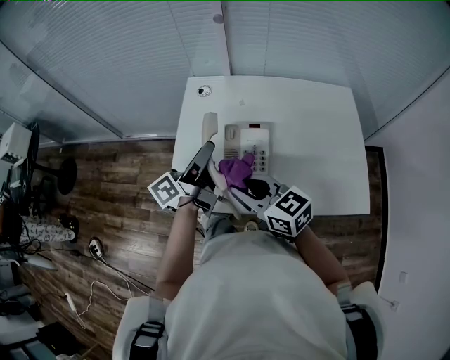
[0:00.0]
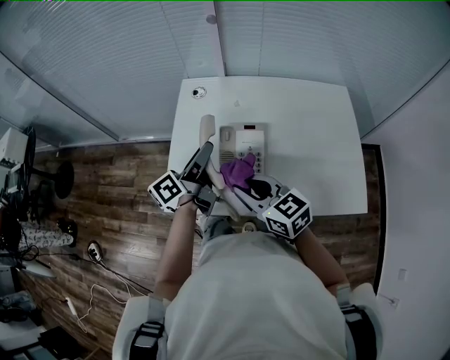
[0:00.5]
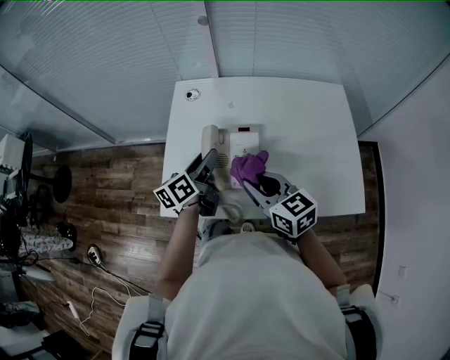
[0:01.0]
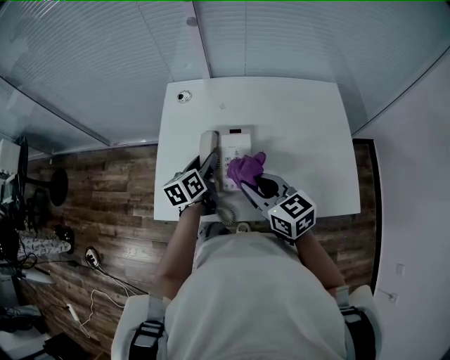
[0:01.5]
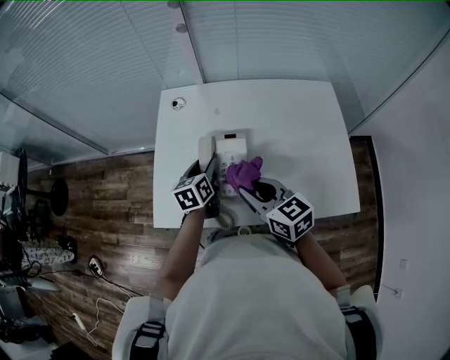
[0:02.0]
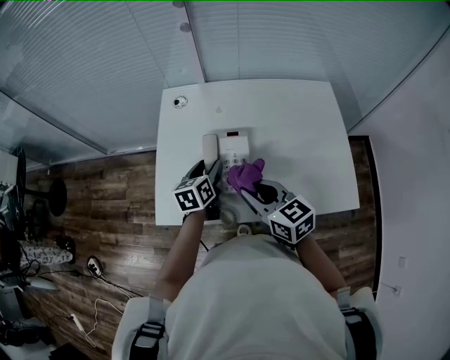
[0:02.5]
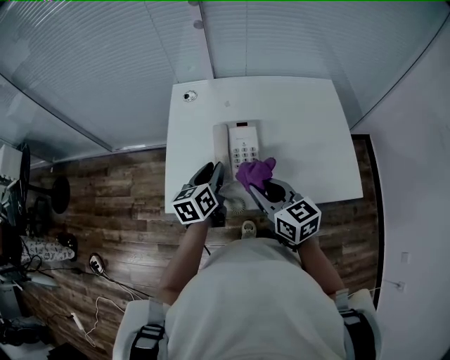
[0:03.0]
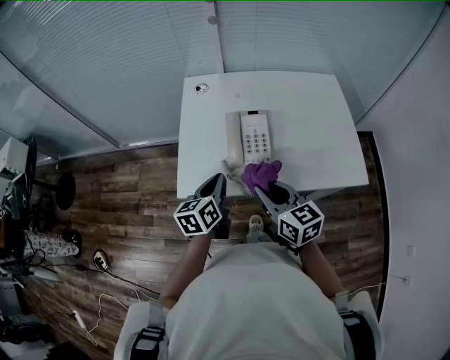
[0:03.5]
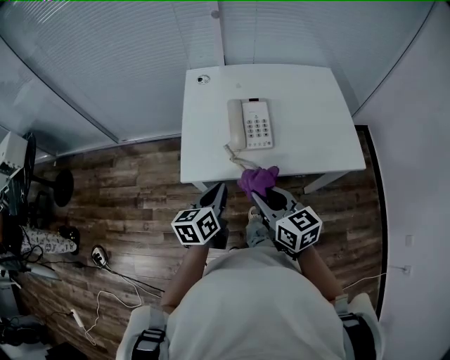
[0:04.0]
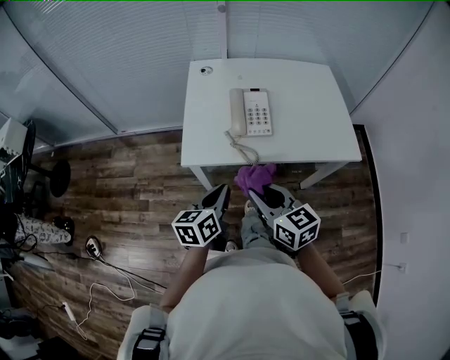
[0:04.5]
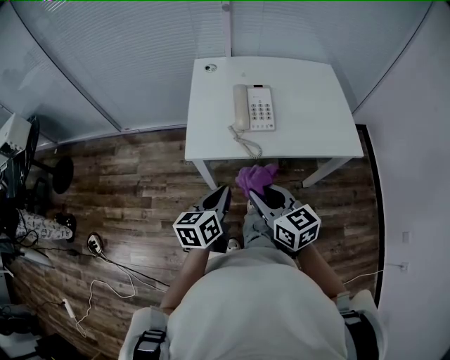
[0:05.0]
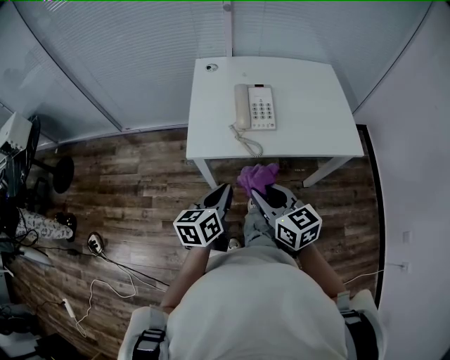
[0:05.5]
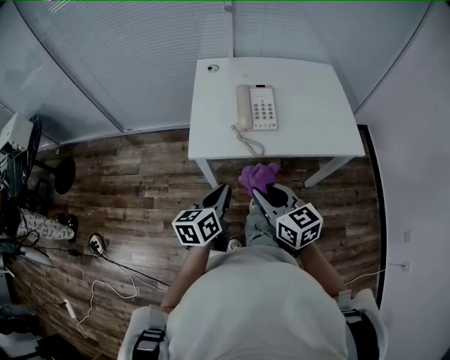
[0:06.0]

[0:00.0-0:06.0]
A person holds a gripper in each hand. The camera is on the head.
0:00.0 to 0:02.0: The left gripper goes roughly 15 cm downward, and points its fingers roughly 40 degrees further downward; the right gripper goes approximately 10 cm to the right.
0:02.0 to 0:04.0: Both grippers move backward and to the left, roughly 25 cm. The left gripper closes its fingers.
0:04.0 to 0:06.0: The grippers both shift backward by approximately 10 cm.

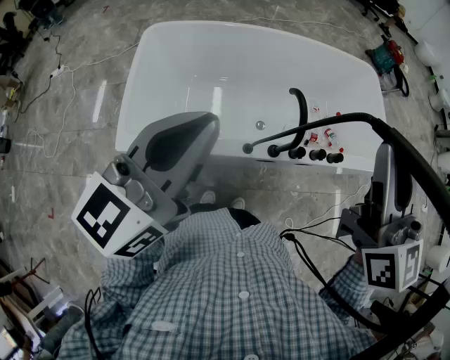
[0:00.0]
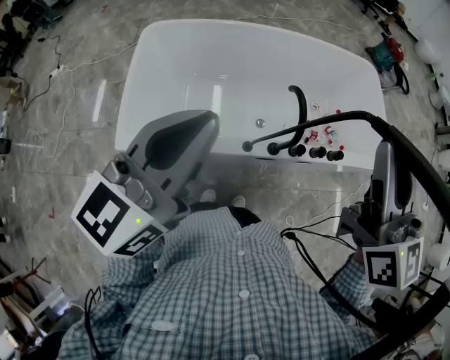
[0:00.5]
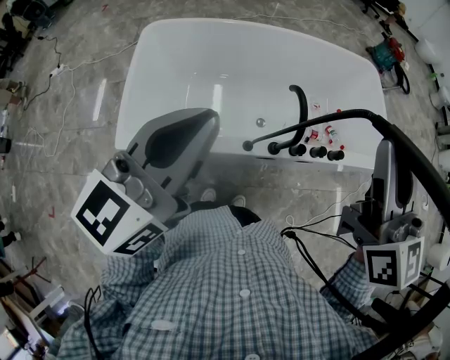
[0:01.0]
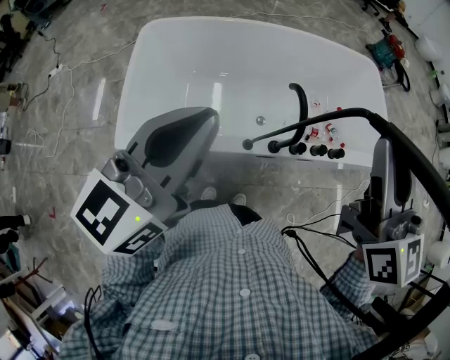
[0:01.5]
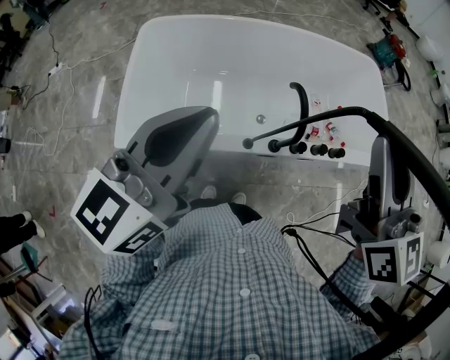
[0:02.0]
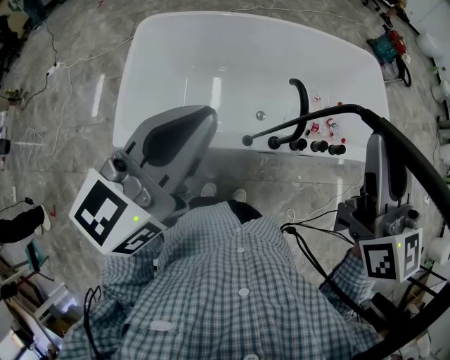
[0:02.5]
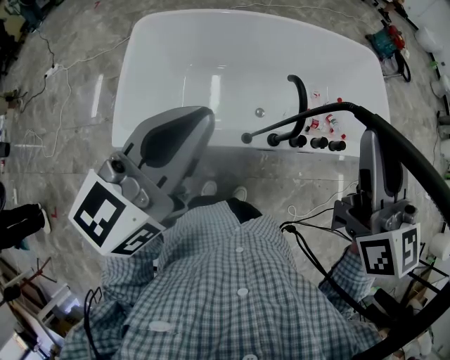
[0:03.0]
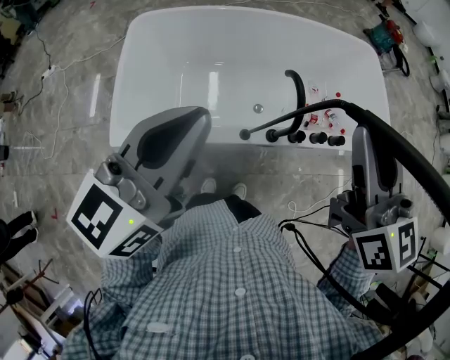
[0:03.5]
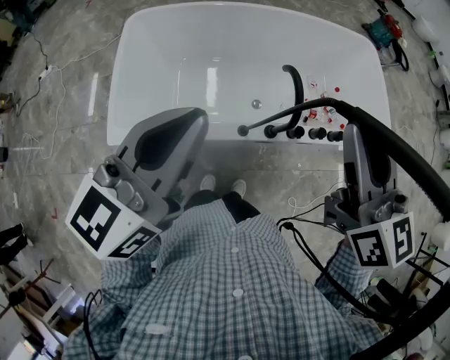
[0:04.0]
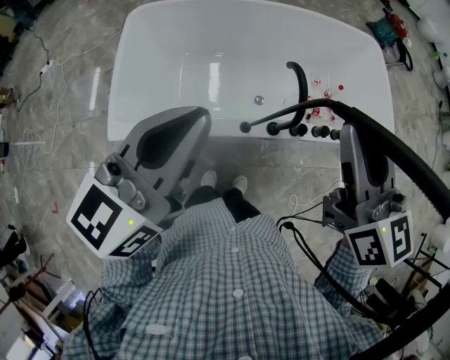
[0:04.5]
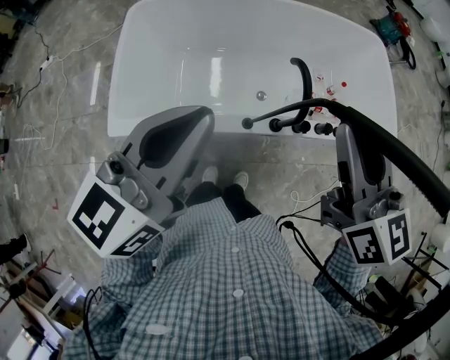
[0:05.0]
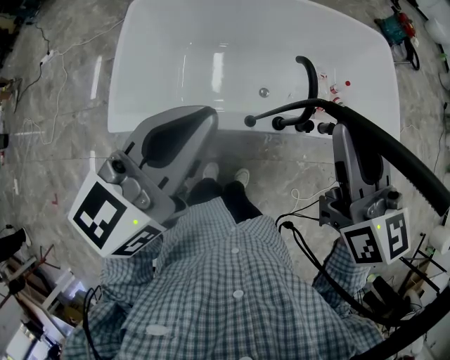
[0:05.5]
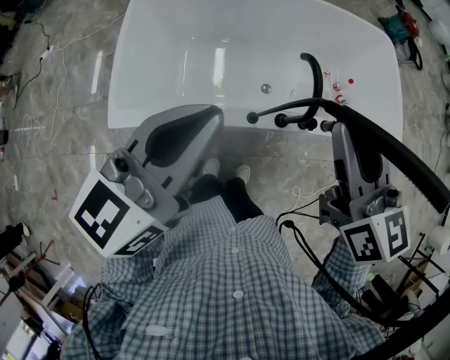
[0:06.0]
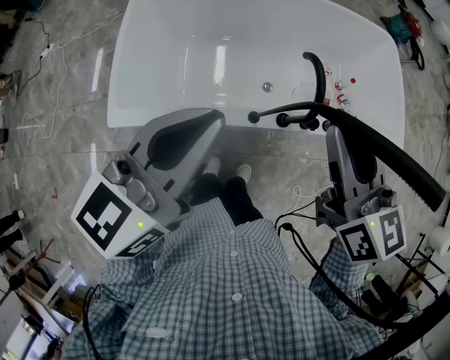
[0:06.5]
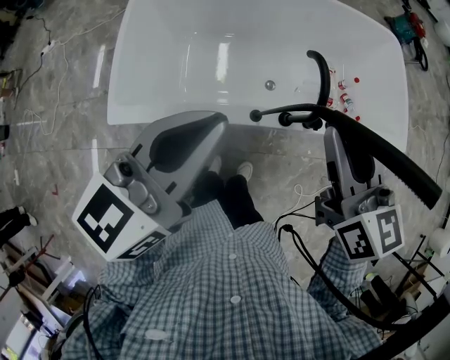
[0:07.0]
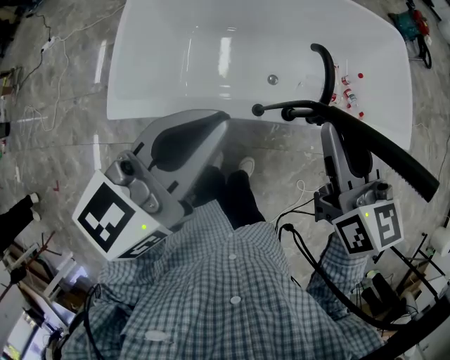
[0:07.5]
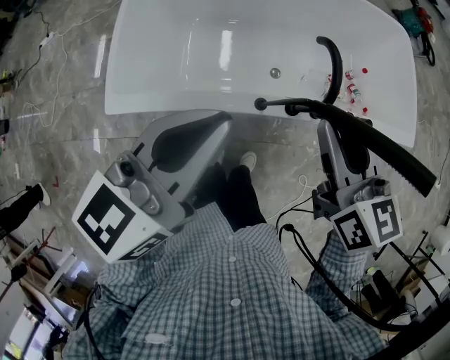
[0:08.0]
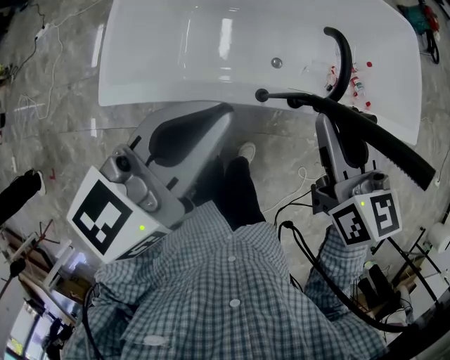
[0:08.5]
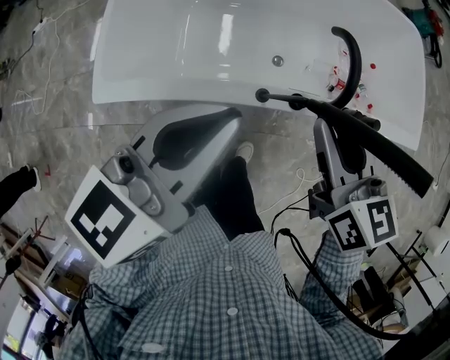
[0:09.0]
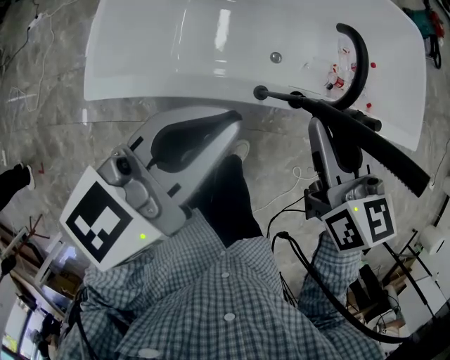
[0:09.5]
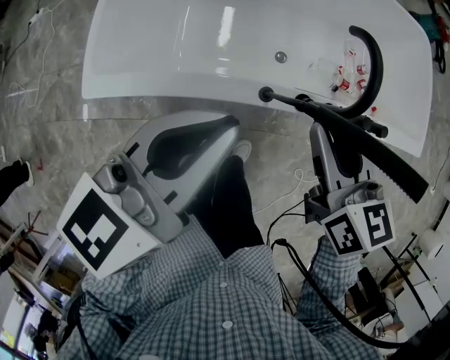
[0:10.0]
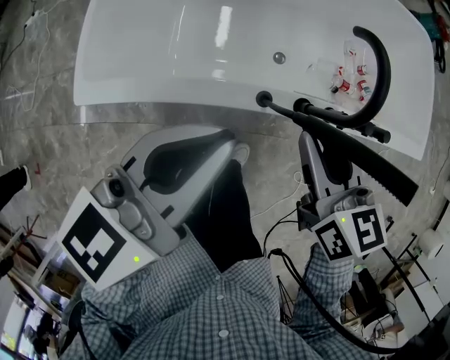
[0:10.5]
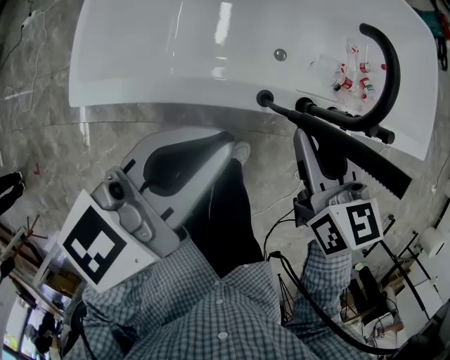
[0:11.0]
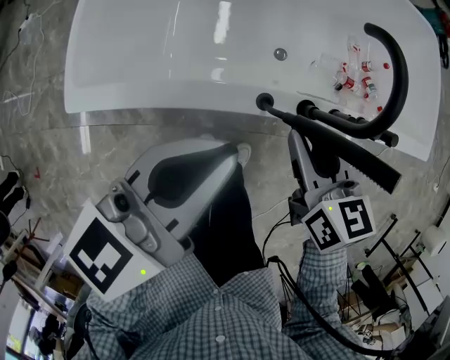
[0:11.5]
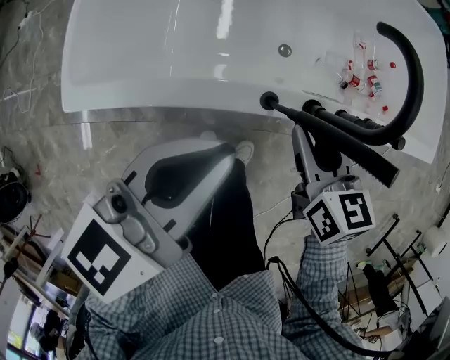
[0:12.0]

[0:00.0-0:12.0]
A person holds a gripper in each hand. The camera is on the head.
0:00.0 to 0:02.0: There are only small adjustments of the grippers.
0:02.0 to 0:04.0: The right gripper goes about 5 cm downward.
0:04.0 to 0:06.0: The right gripper moves downward, approximately 5 cm.
0:06.0 to 0:08.0: The left gripper heads downward, covering approximately 5 cm. The right gripper travels downward by approximately 10 cm.
0:08.0 to 0:10.0: The two grippers go approximately 10 cm downward.
0:10.0 to 0:12.0: The right gripper goes approximately 15 cm downward; the left gripper travels downward by about 10 cm.

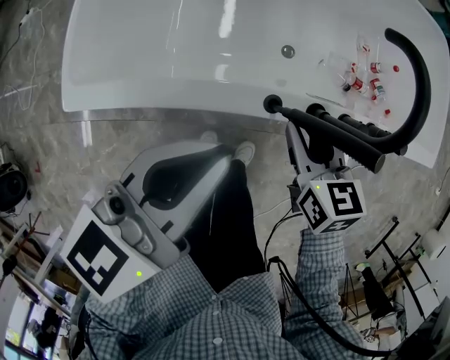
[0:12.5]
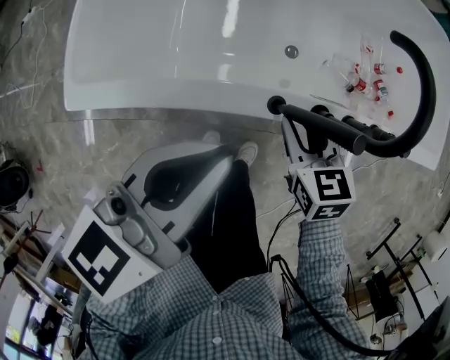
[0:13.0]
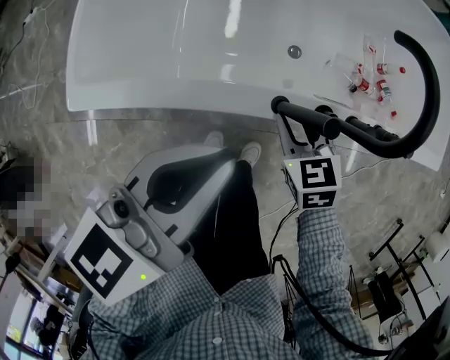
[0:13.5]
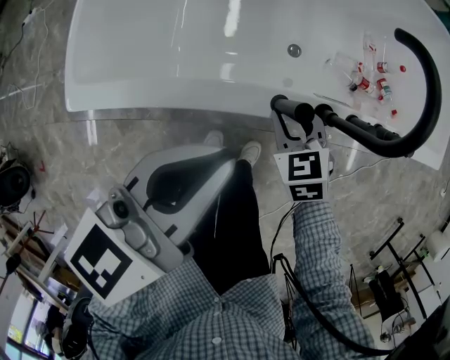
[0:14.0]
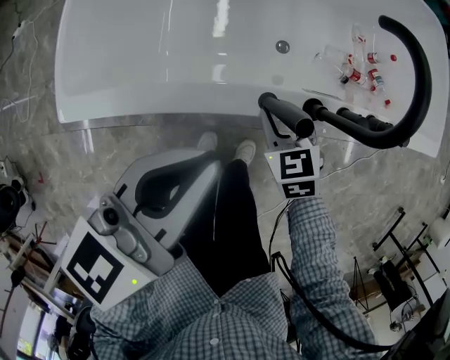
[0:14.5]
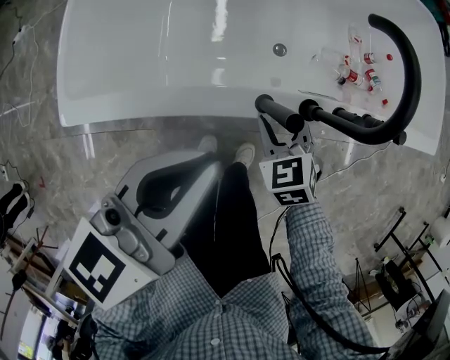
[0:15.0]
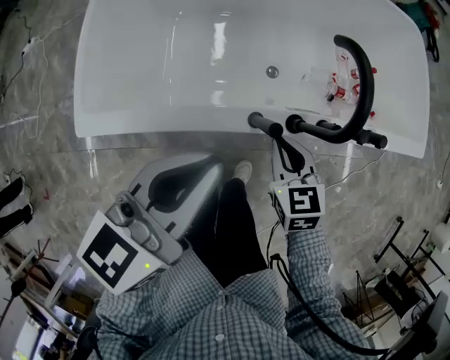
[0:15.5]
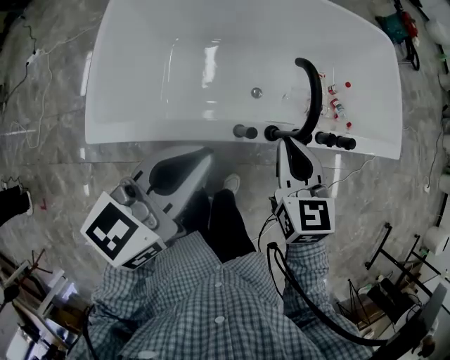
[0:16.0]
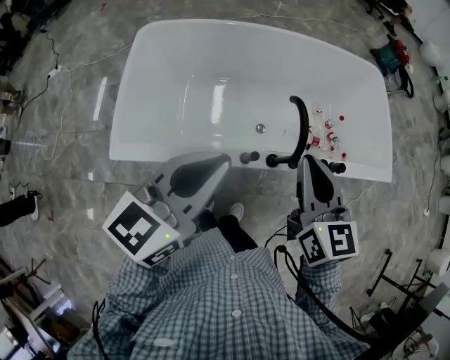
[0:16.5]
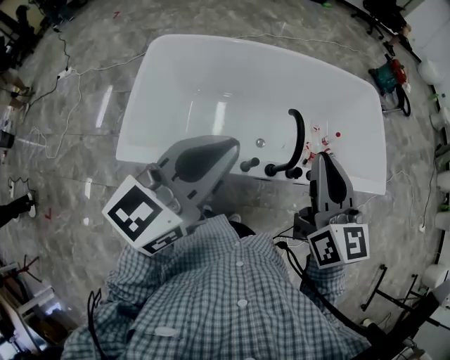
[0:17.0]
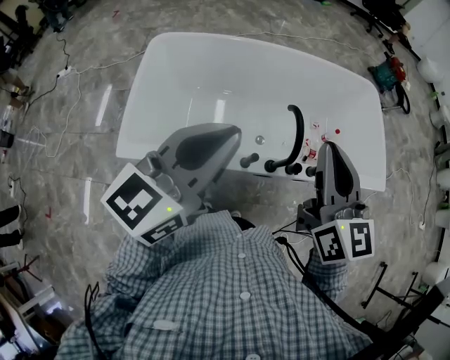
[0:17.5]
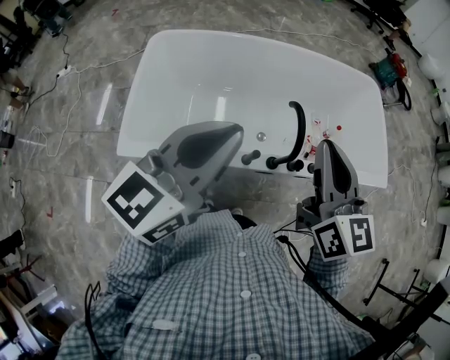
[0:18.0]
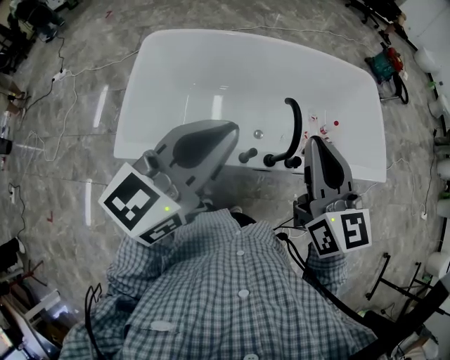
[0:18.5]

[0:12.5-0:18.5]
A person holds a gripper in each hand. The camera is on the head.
0:12.5 to 0:14.5: The right gripper moves downward, roughly 10 cm, and swivels roughly 20 degrees.
0:14.5 to 0:16.5: The left gripper is displaced upward by approximately 25 cm; the right gripper is displaced upward by roughly 40 cm, tilts its fingers roughly 30 degrees upward, and closes its fingers.
0:16.5 to 0:18.5: Both grippers move upward, some 10 cm.

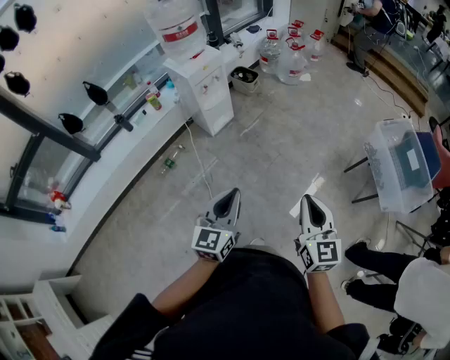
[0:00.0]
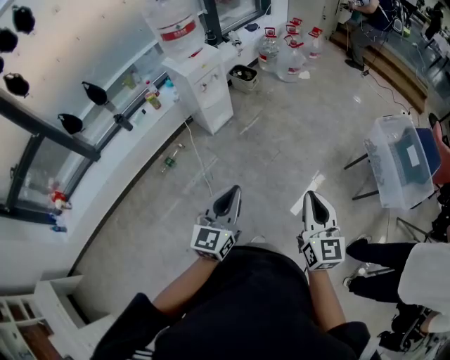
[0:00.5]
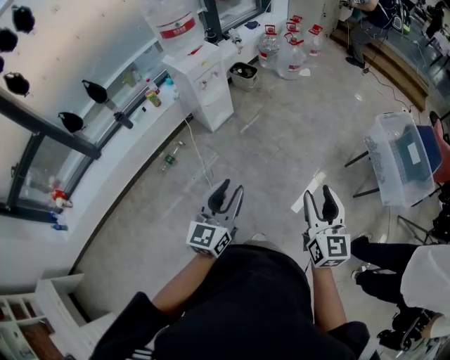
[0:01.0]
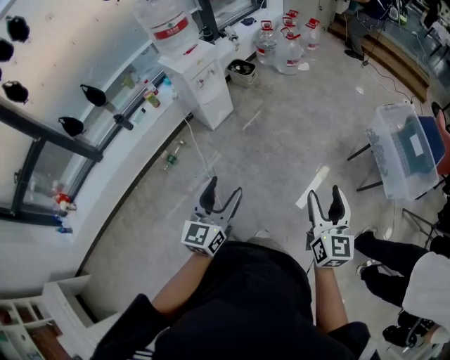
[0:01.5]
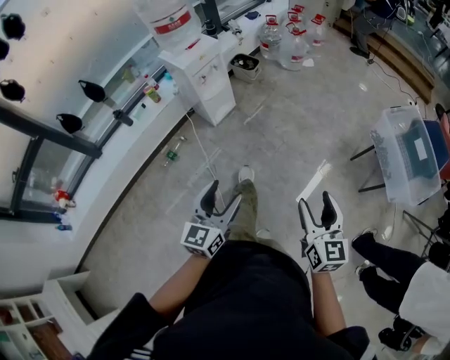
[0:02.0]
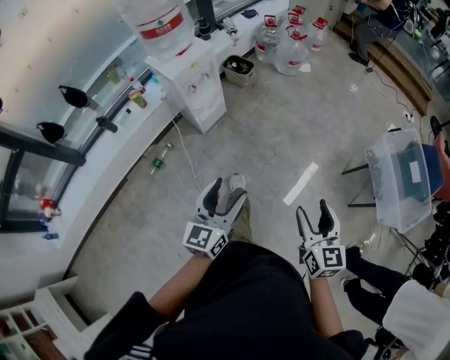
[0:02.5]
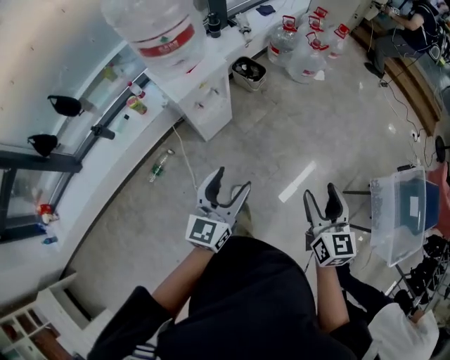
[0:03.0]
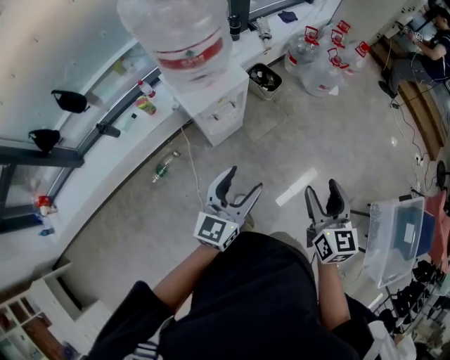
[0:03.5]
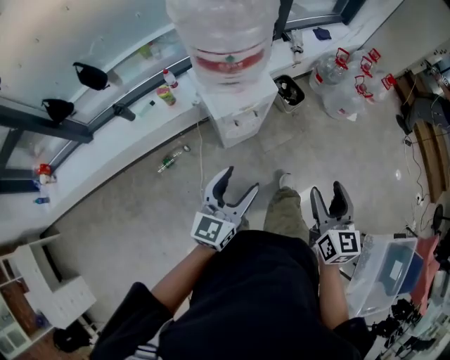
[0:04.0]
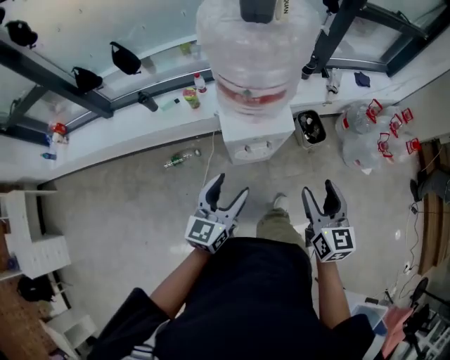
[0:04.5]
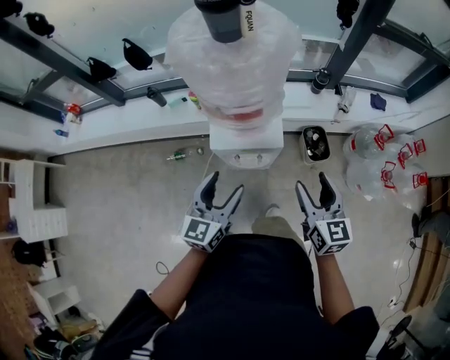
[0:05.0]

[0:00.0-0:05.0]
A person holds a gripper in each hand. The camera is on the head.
0:00.0 to 0:02.5: The right gripper is displaced forward and downward by some 15 cm, and opens up. Meanwhile the left gripper moves forward, approximately 15 cm, and opens.
0:02.5 to 0:05.0: The two grippers travel together, roughly 70 cm. The left gripper changes its angle by about 50 degrees. The right gripper turns by approximately 50 degrees.
